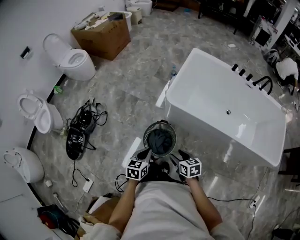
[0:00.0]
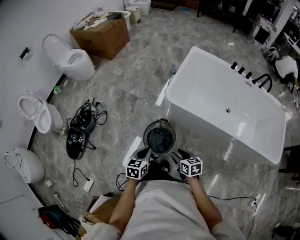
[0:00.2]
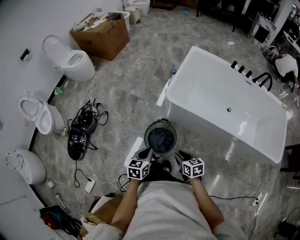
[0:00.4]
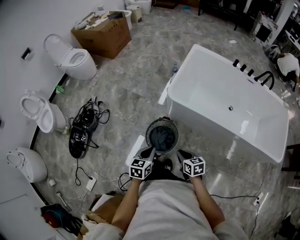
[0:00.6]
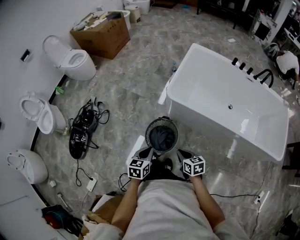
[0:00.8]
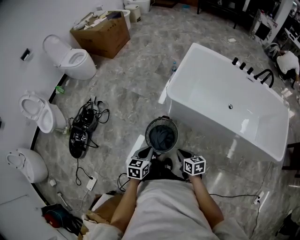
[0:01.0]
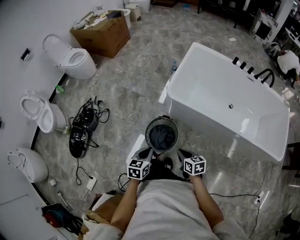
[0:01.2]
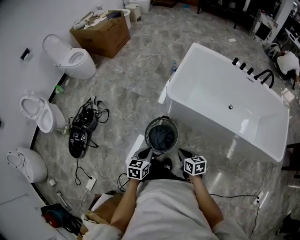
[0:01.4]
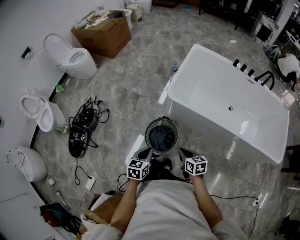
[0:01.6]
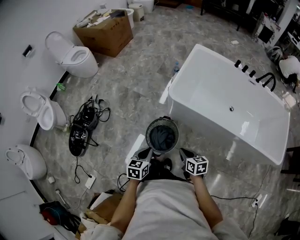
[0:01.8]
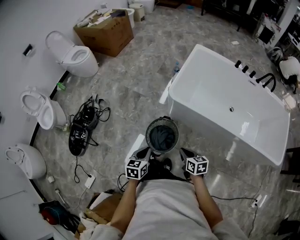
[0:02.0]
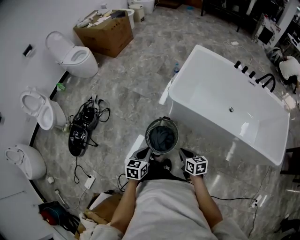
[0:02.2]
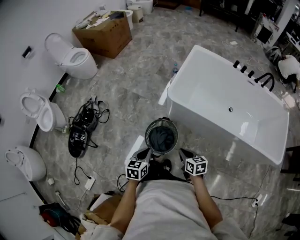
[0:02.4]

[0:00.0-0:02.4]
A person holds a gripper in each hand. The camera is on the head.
0.0 to 1.2 s: The right gripper closes.
1.2 to 2.4 s: There are only small adjustments of the grippers.

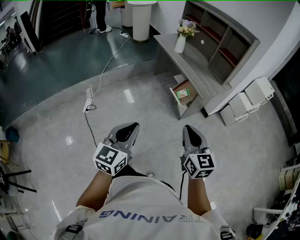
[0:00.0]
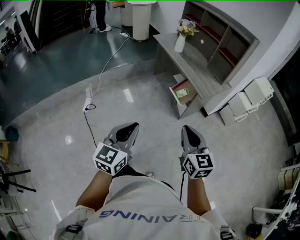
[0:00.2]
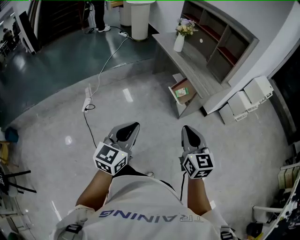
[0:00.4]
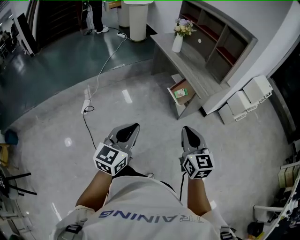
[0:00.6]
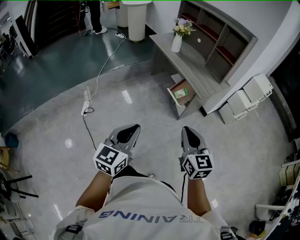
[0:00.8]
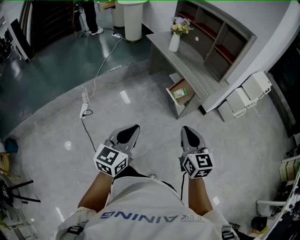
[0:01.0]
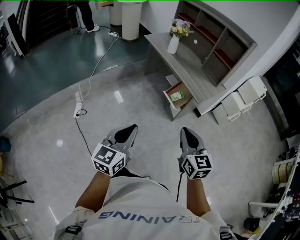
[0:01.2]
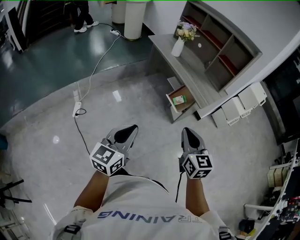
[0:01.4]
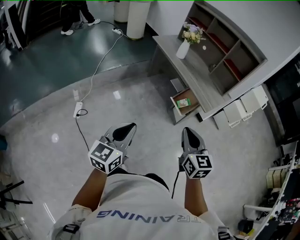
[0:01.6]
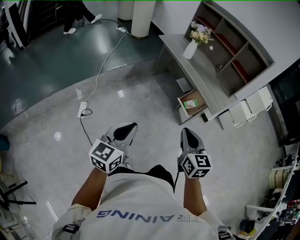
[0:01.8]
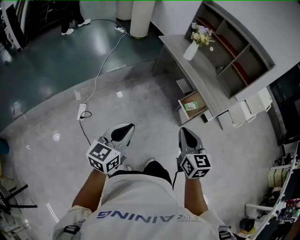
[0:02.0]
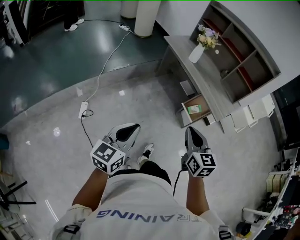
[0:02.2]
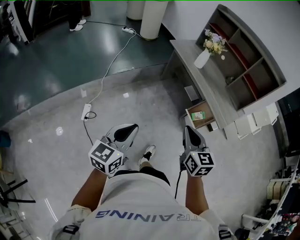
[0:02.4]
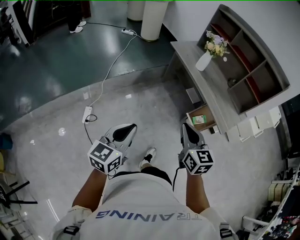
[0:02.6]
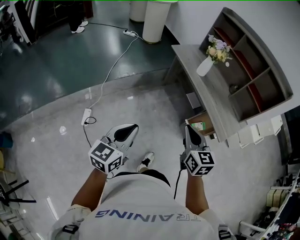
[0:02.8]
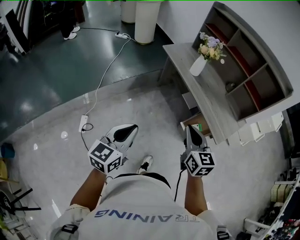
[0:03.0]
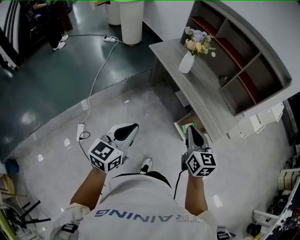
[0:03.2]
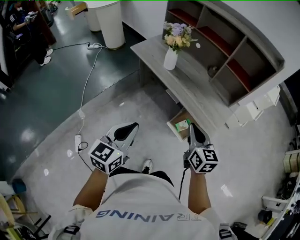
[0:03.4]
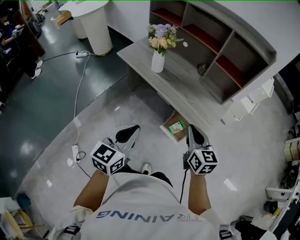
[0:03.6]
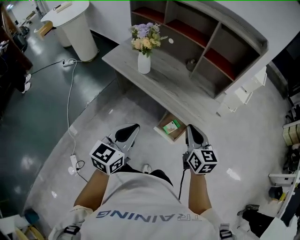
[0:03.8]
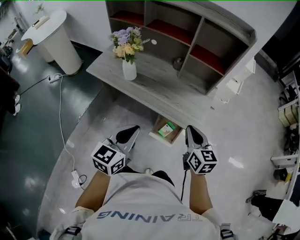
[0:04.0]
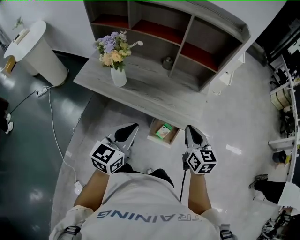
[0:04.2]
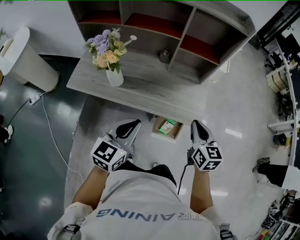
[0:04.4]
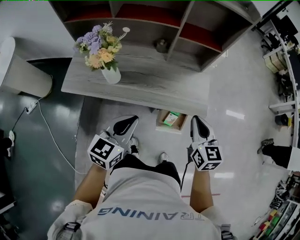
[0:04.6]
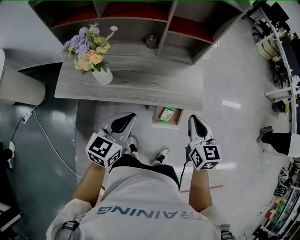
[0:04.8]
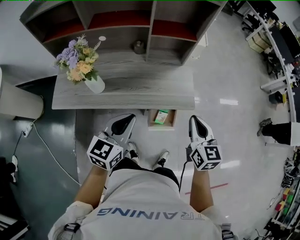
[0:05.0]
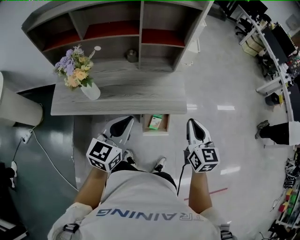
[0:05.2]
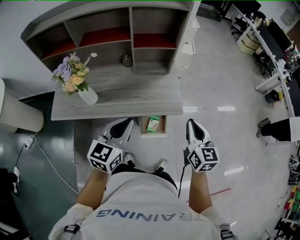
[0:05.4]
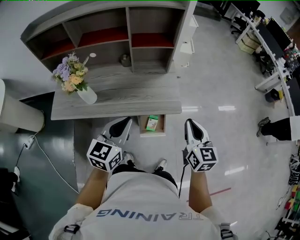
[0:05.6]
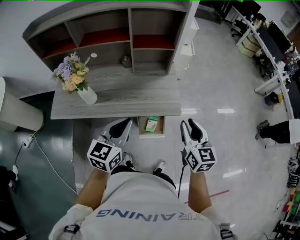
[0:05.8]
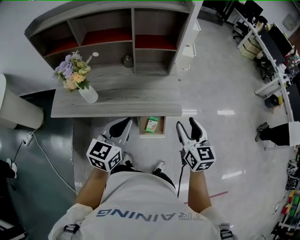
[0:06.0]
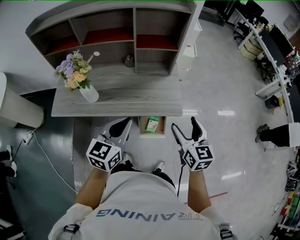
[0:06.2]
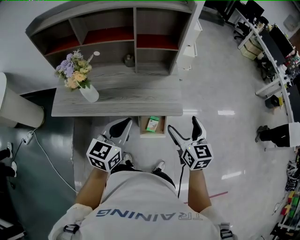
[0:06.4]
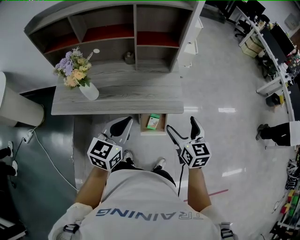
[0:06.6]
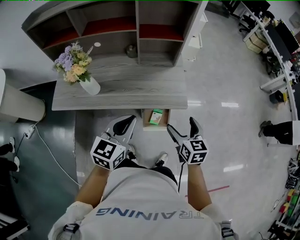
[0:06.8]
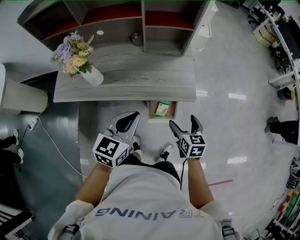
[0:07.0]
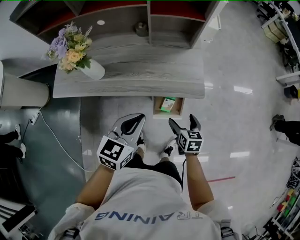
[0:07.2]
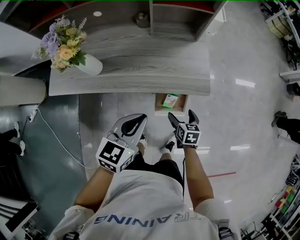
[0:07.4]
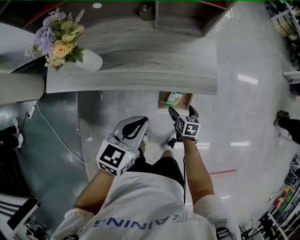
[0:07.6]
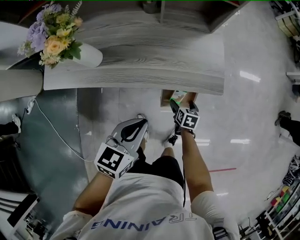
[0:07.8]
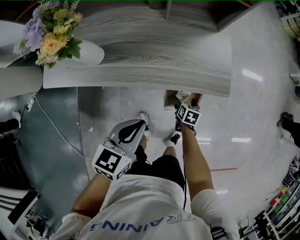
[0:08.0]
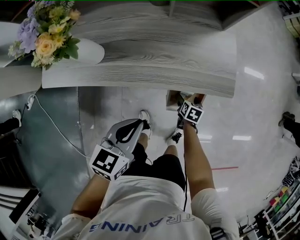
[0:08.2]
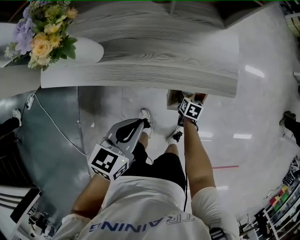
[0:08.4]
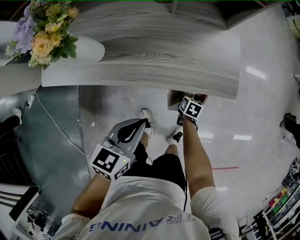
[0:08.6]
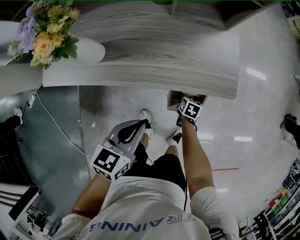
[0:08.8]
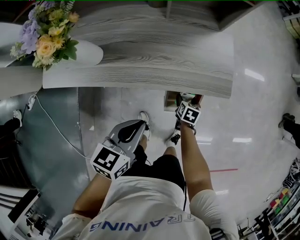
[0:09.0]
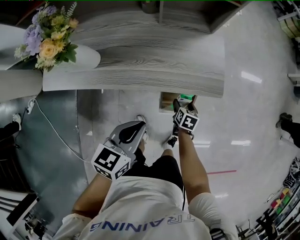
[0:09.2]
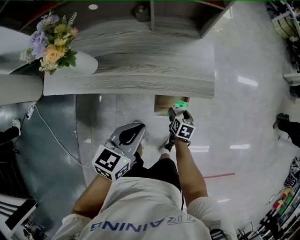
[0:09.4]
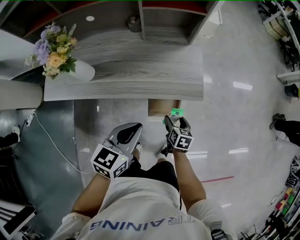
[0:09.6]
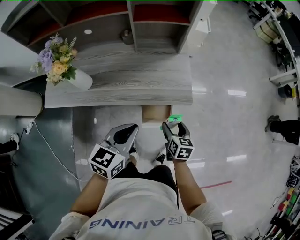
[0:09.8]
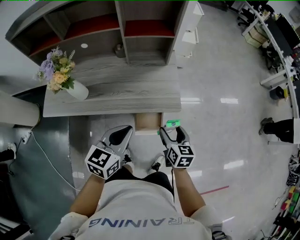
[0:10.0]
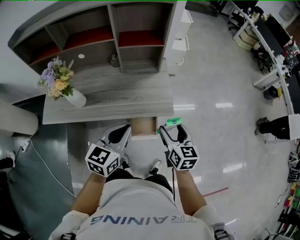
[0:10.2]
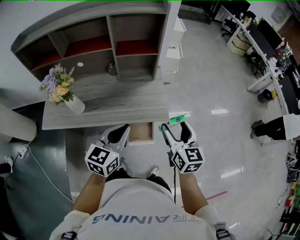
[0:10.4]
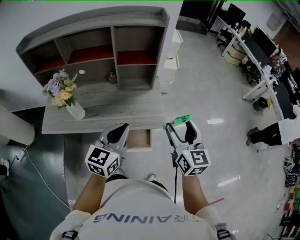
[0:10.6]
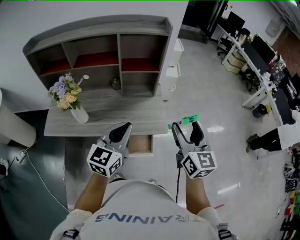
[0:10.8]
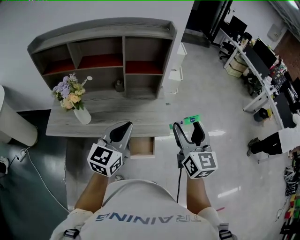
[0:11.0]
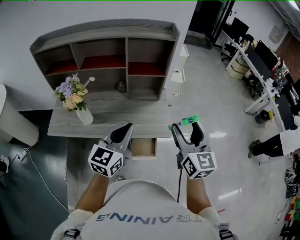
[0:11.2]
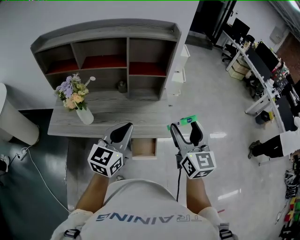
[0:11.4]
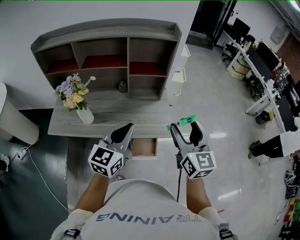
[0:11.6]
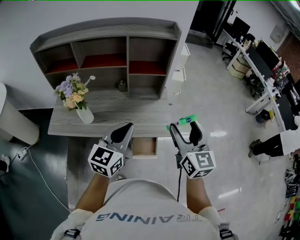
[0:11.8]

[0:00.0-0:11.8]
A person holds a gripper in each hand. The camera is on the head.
0.0 to 1.4 s: Both grippers move forward and to the left, approximately 10 cm.
1.4 to 3.0 s: The grippers both shift forward and to the left by some 30 cm.
3.0 to 4.4 s: The right gripper changes place by roughly 30 cm, and changes its angle by about 50 degrees; the left gripper changes place by about 40 cm, and swivels about 50 degrees.
4.4 to 6.0 s: The right gripper travels to the right and backward by approximately 10 cm, and opens its fingers; the left gripper is displaced to the right by some 5 cm.
6.0 to 7.4 s: The left gripper goes roughly 10 cm downward; the right gripper travels downward by roughly 35 cm, points its fingers approximately 30 degrees further downward, and opens up.
7.4 to 8.8 s: The right gripper travels downward by about 20 cm, and changes its angle by roughly 20 degrees, while the left gripper shifts about 10 cm downward and to the left.
8.8 to 10.4 s: The left gripper shifts some 25 cm upward and to the right, and changes its angle by roughly 30 degrees; the right gripper goes approximately 50 cm upward, and tilts its fingers approximately 50 degrees upward.
10.4 to 11.8 s: The left gripper shifts roughly 10 cm upward, while the right gripper heads upward, covering roughly 10 cm.

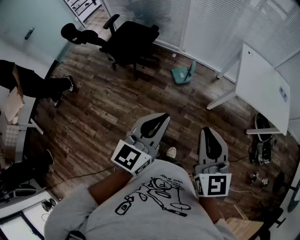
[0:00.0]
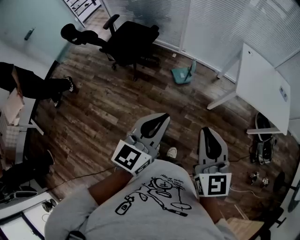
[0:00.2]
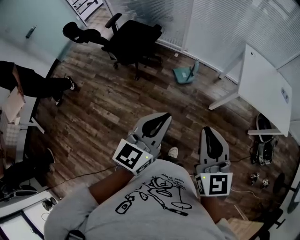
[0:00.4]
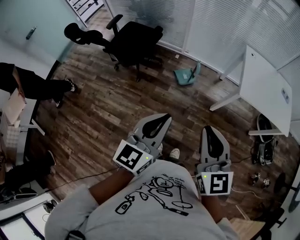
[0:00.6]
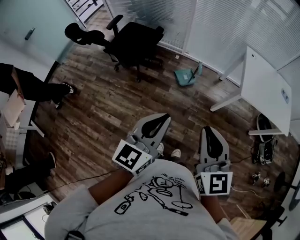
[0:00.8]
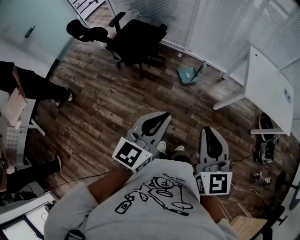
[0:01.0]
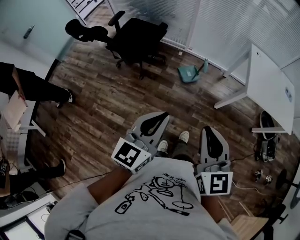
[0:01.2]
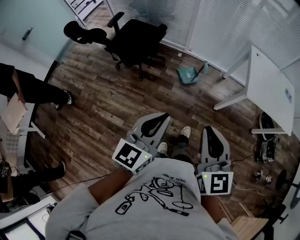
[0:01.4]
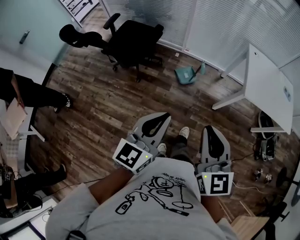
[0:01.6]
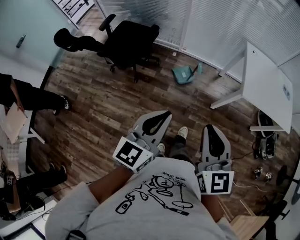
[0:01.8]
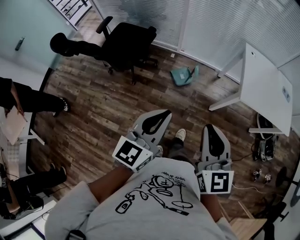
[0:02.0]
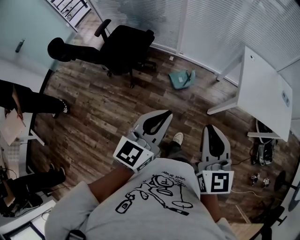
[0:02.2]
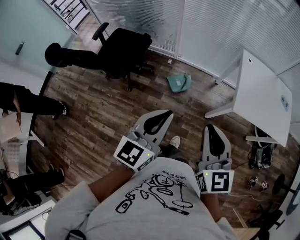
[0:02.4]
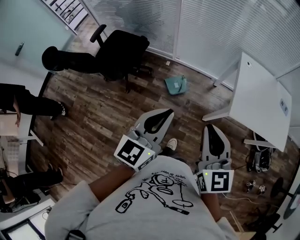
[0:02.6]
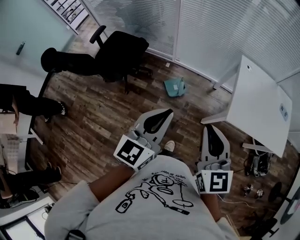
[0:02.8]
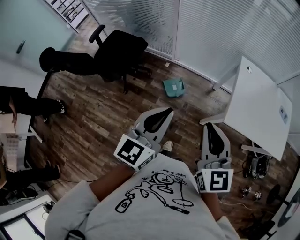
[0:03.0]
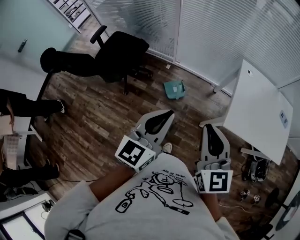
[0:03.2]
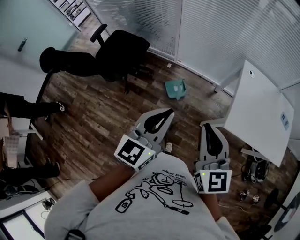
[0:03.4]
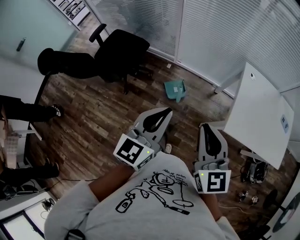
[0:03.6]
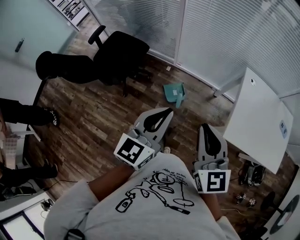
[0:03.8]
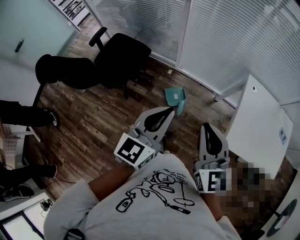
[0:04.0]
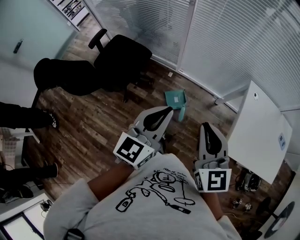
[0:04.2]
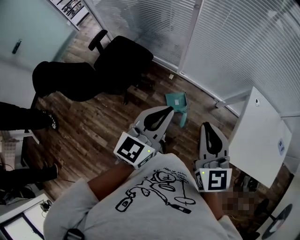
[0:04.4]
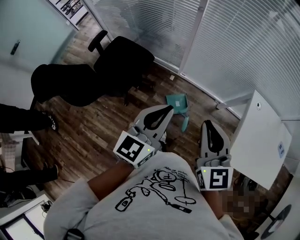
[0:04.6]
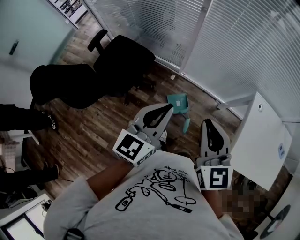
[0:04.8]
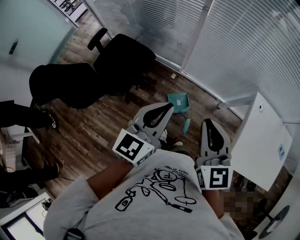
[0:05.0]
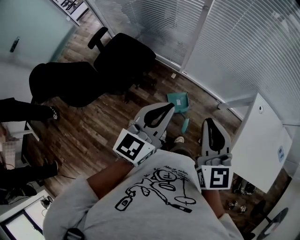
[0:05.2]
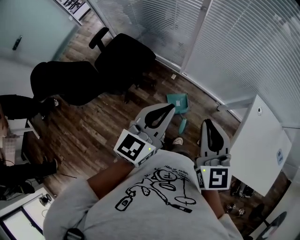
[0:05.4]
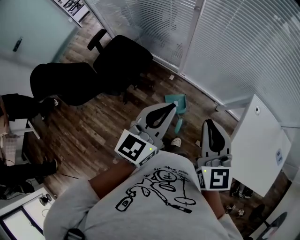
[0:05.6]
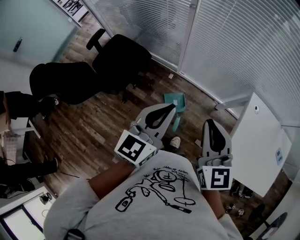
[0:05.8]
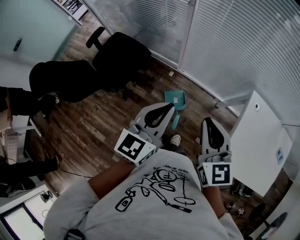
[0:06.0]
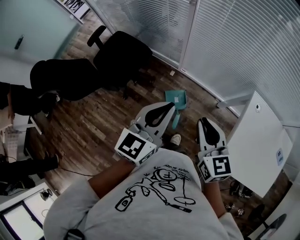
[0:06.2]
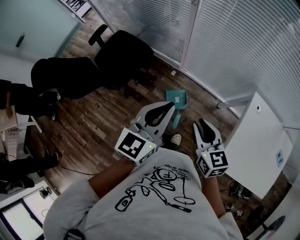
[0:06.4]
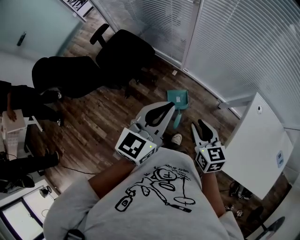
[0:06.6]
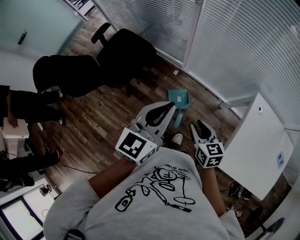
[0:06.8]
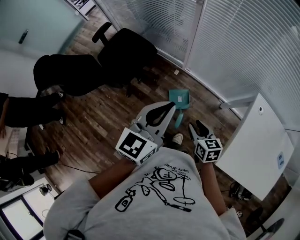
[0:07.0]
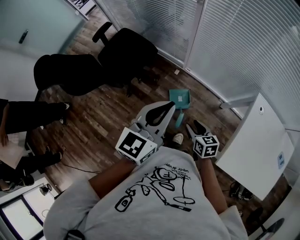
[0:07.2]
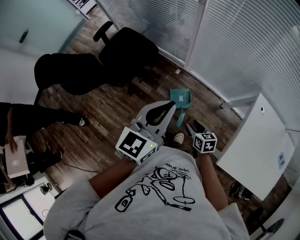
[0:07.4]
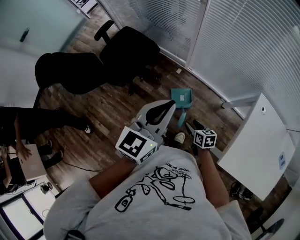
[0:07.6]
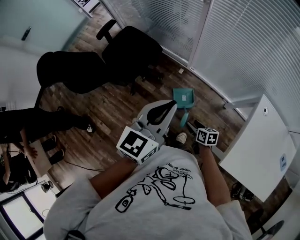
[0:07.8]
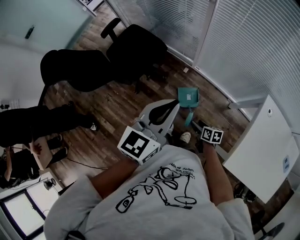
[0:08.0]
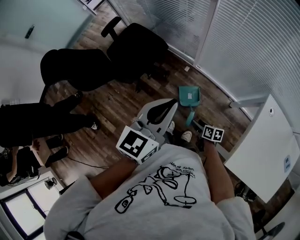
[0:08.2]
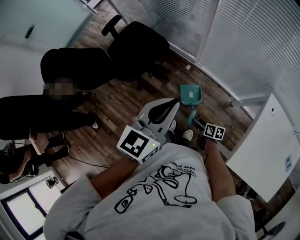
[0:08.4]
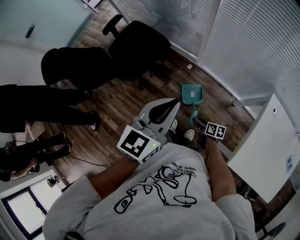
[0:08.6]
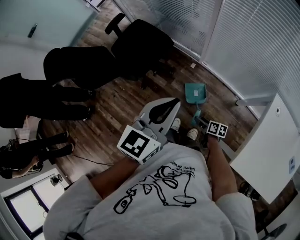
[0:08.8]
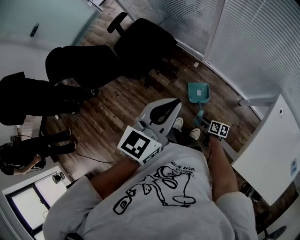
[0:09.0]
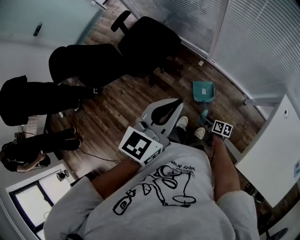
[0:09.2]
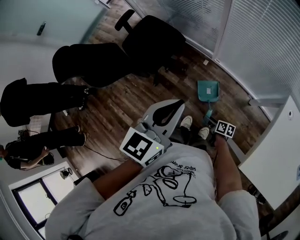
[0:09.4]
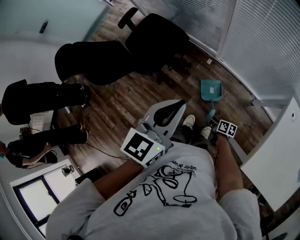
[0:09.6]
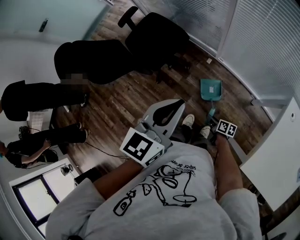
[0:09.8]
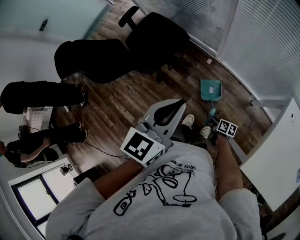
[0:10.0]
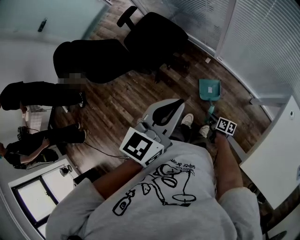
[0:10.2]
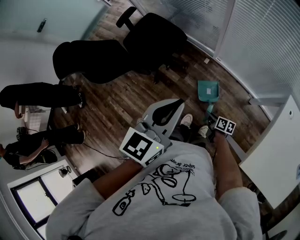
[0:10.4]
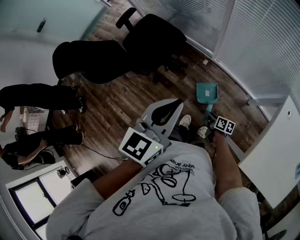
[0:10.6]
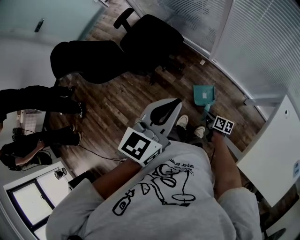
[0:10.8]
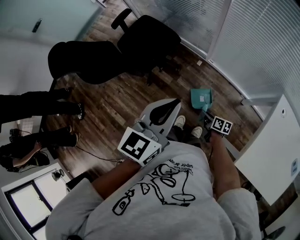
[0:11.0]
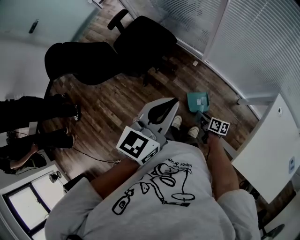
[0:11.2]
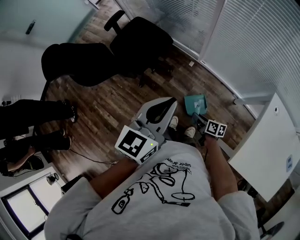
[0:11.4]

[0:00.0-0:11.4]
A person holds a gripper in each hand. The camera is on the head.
0.0 to 1.4 s: The two grippers go roughly 10 cm to the left.
1.4 to 2.8 s: The grippers both shift forward and to the right by some 30 cm.
2.8 to 4.2 s: The grippers both shift forward by approximately 20 cm.
4.2 to 5.6 s: The grippers both shift forward by about 10 cm.
5.6 to 7.2 s: The right gripper goes approximately 30 cm downward, swivels roughly 40 degrees, and opens.
7.2 to 8.6 s: The right gripper travels downward by some 15 cm, and swivels about 30 degrees.
8.6 to 10.0 s: The right gripper shifts by about 5 cm, and closes up.
10.0 to 11.4 s: The right gripper heads upward, covering approximately 10 cm.
